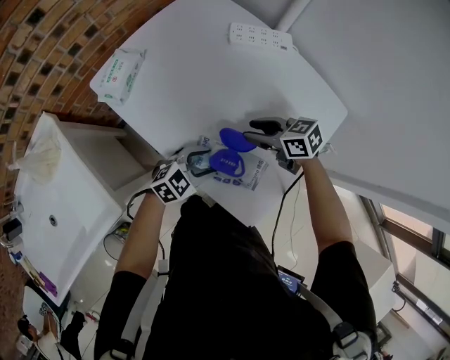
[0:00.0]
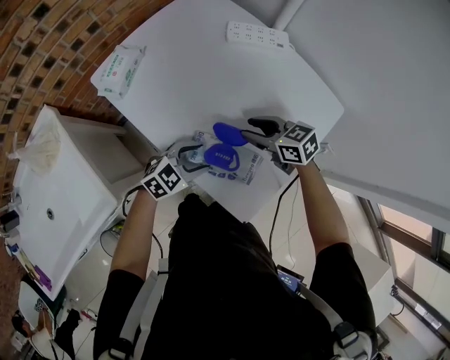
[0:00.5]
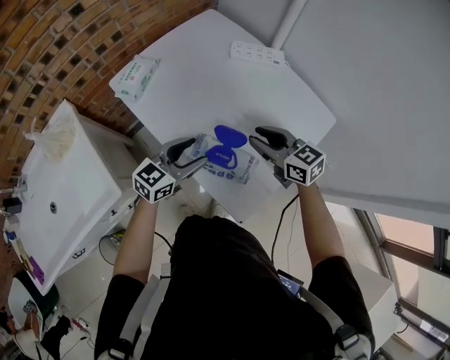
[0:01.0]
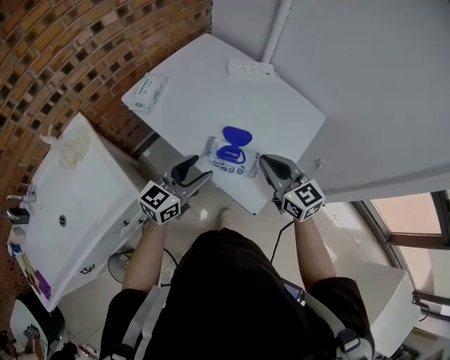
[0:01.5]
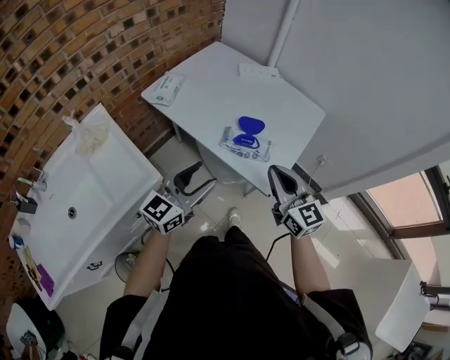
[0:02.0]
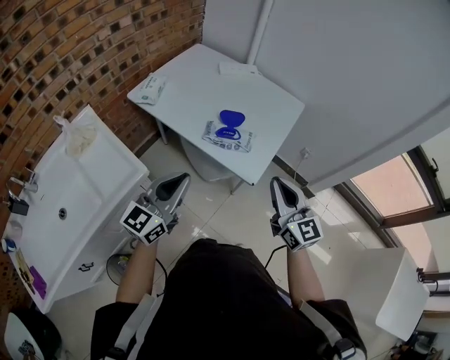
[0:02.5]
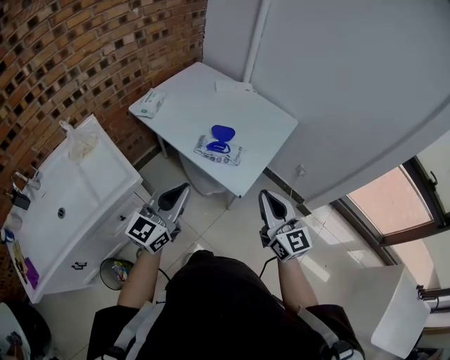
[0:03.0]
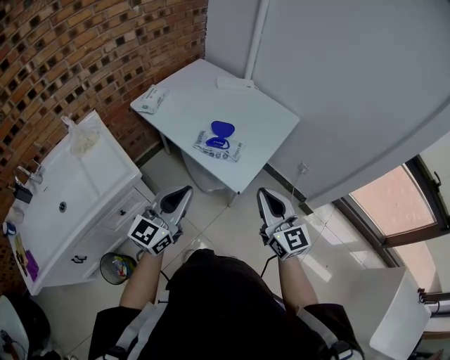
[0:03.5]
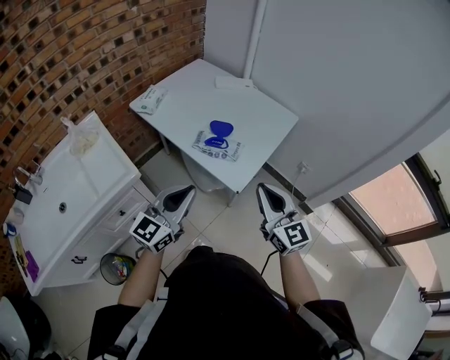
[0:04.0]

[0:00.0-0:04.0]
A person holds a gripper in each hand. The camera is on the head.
0:00.0 to 0:02.0: The left gripper travels upward by some 25 cm, and tips its fingers upward by some 40 degrees. Meanwhile the right gripper changes place by about 35 cm, swivels some 60 degrees, and closes.
0:02.0 to 0:04.0: Both grippers move to the right and backward, roughly 15 cm. The left gripper closes its fingers.

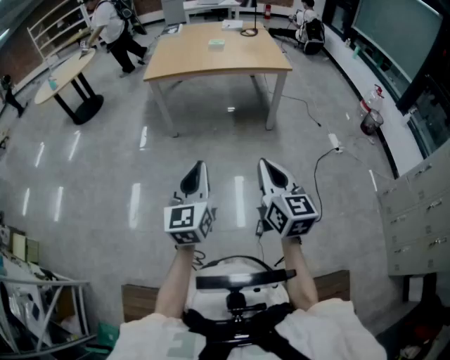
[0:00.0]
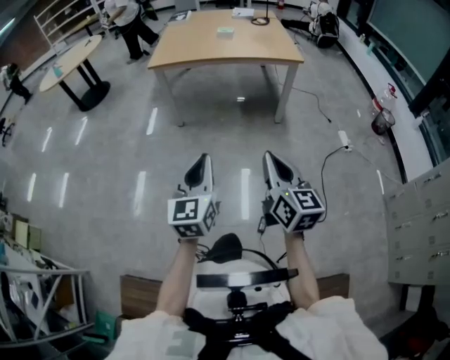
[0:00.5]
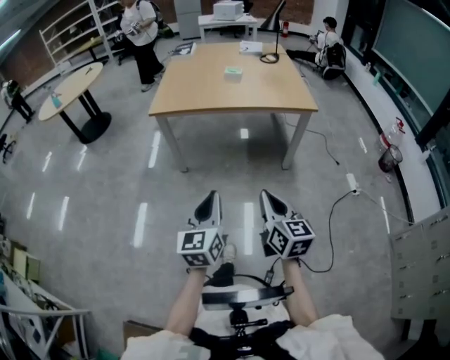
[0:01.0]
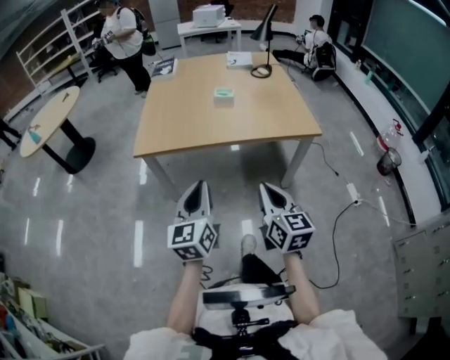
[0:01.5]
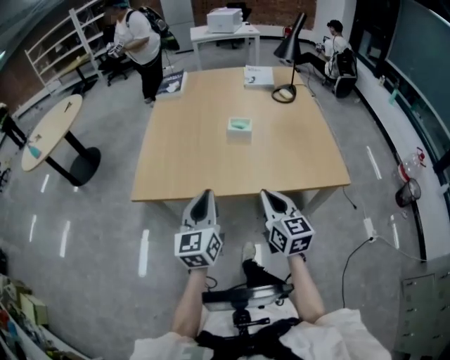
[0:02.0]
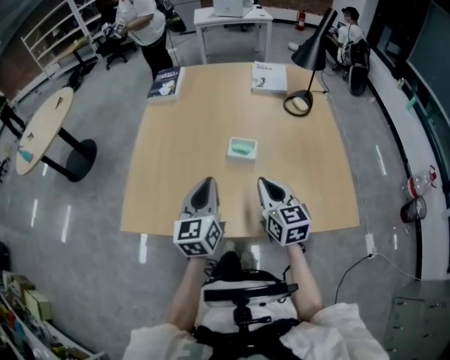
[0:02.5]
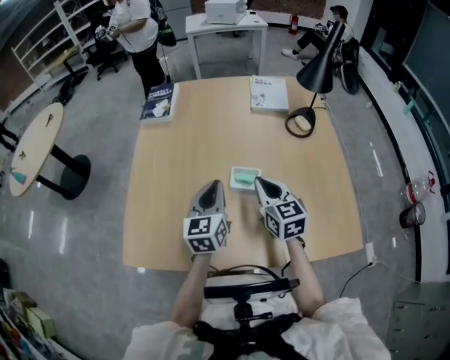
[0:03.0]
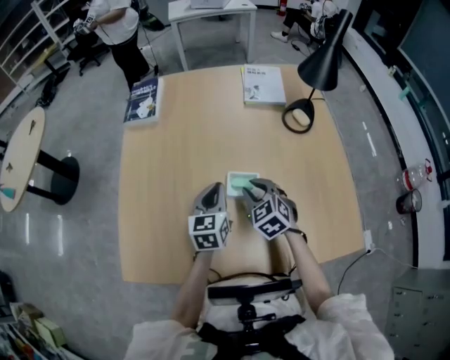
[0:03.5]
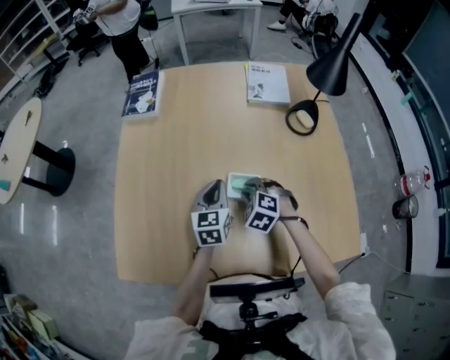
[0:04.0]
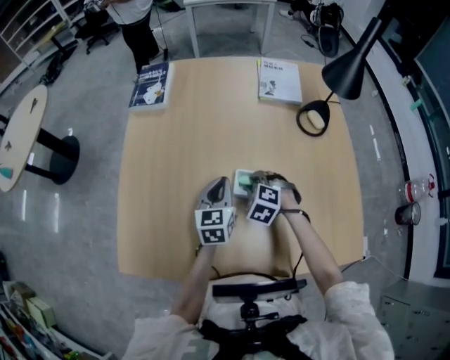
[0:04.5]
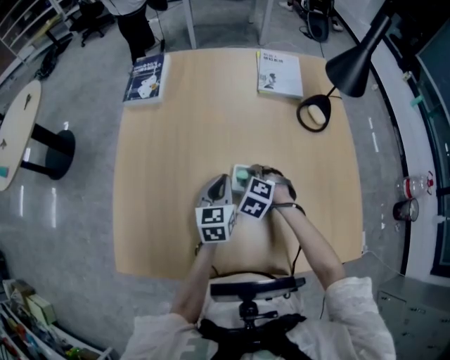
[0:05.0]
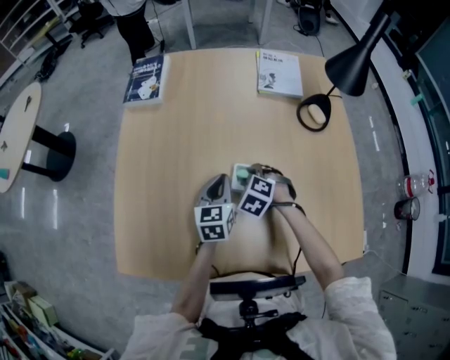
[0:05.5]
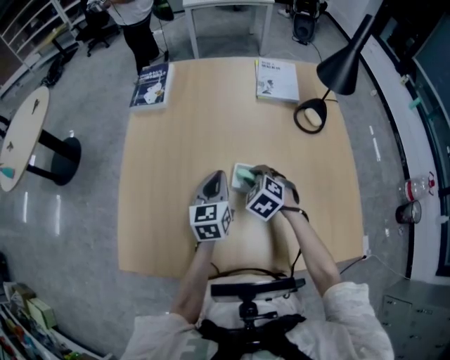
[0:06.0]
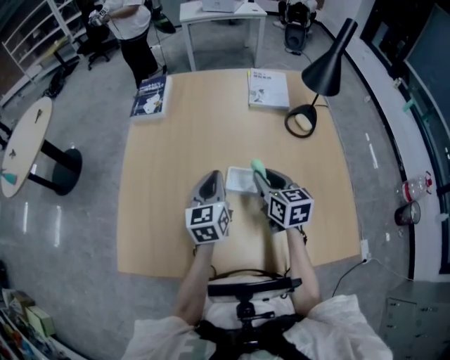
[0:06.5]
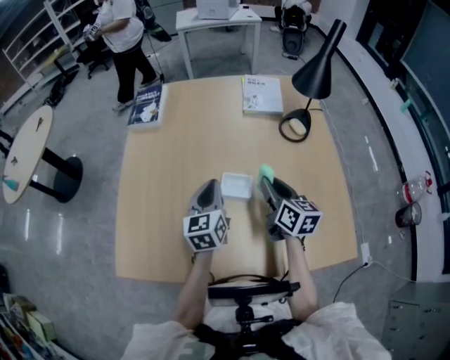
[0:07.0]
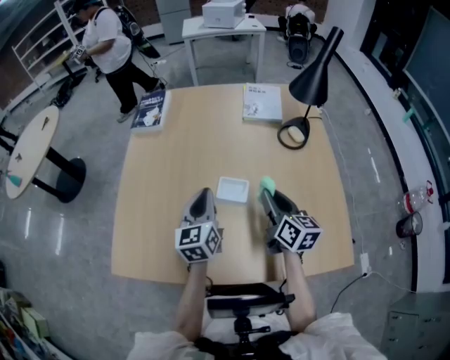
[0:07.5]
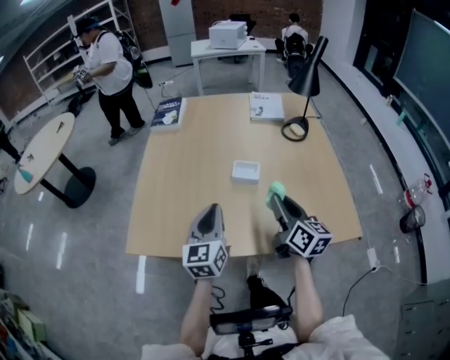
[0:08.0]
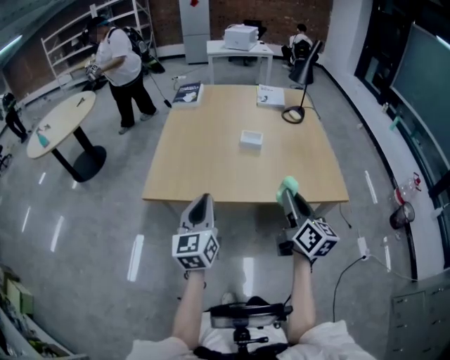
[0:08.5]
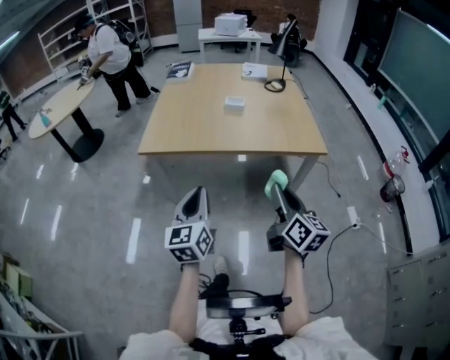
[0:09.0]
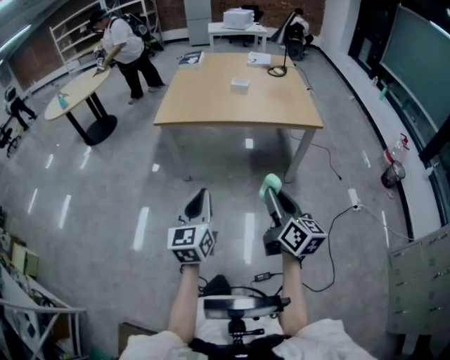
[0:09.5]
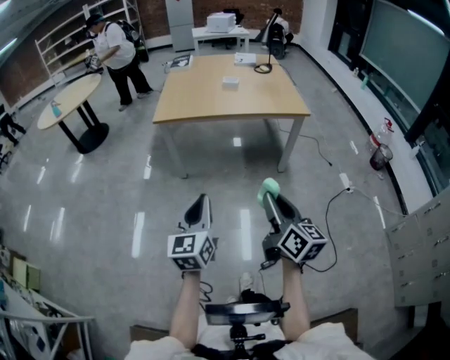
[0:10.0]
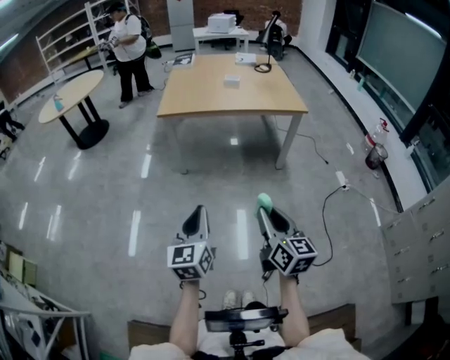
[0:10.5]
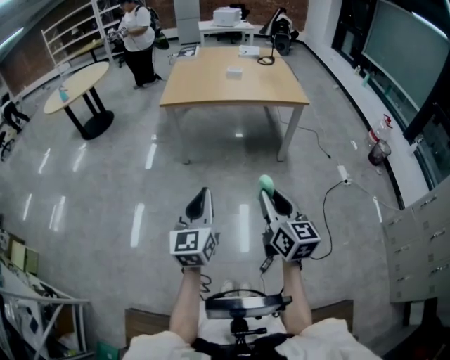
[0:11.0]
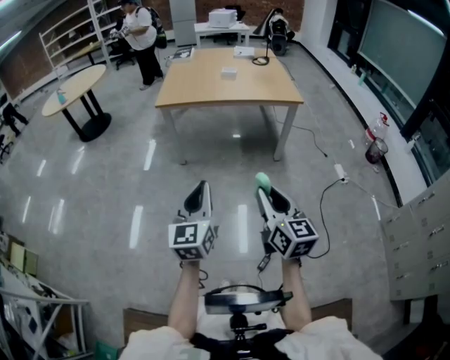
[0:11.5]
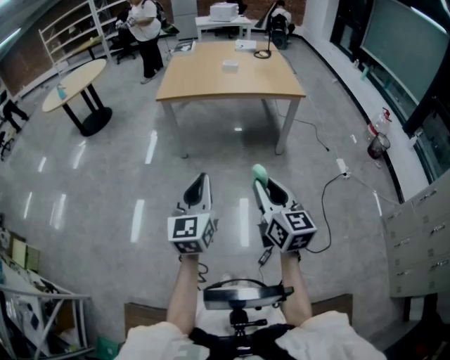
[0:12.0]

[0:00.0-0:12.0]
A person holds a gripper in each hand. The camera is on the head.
0:00.0 to 0:02.0: The pair of grippers is taken forward, about 80 cm.
0:02.0 to 0:04.0: The two grippers travel together, forward, some 40 cm. The left gripper turns by roughly 20 degrees; the right gripper tilts its fingers approximately 50 degrees downward, and opens.
0:04.0 to 0:06.0: The grippers stay close to where they were, moving slightly.
0:06.0 to 0:08.0: The right gripper shifts about 25 cm backward and upward, and tips its fingers upward by about 50 degrees; the left gripper goes some 25 cm backward.
0:08.0 to 0:10.0: Both grippers are carried backward, approximately 80 cm.
0:10.0 to 0:12.0: Both grippers travel together backward, about 10 cm.

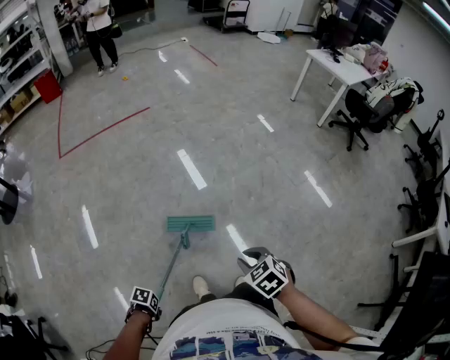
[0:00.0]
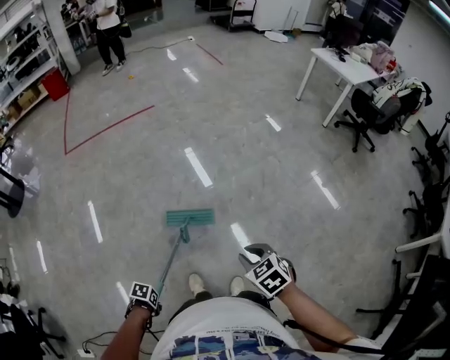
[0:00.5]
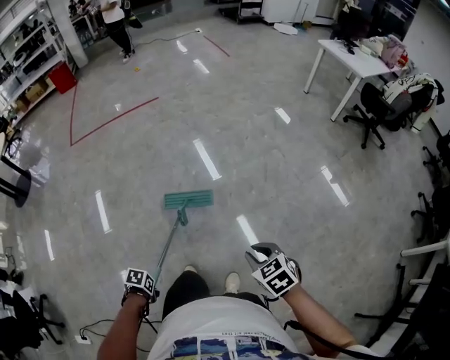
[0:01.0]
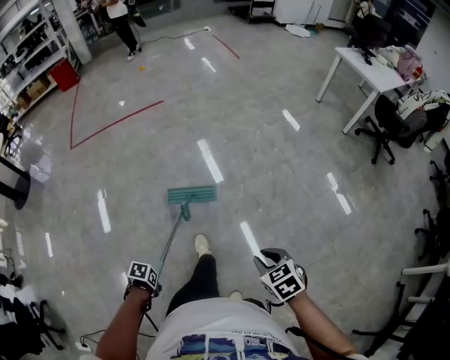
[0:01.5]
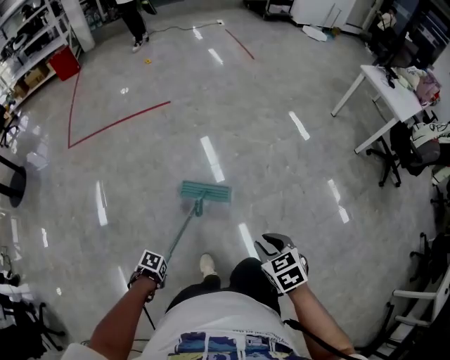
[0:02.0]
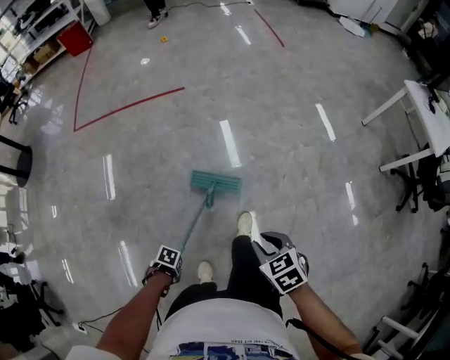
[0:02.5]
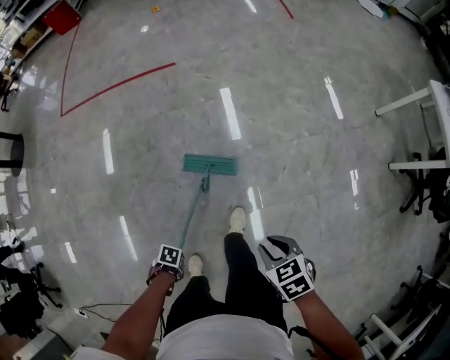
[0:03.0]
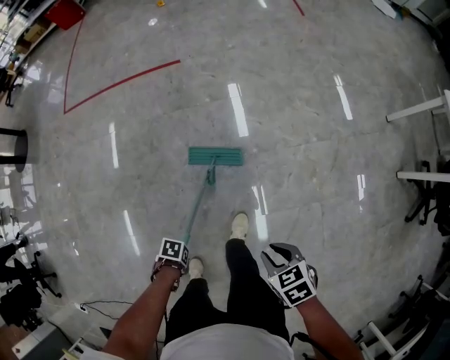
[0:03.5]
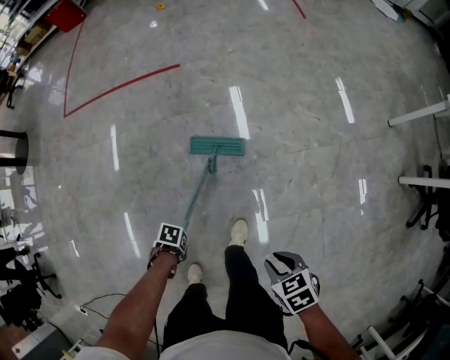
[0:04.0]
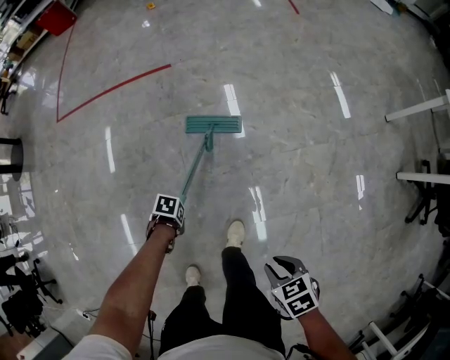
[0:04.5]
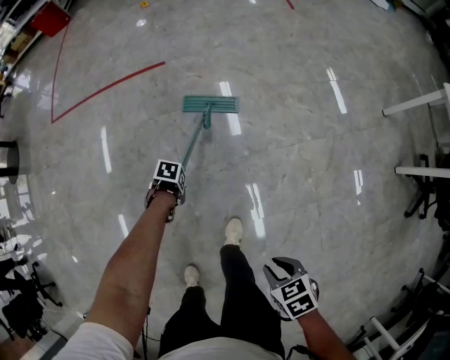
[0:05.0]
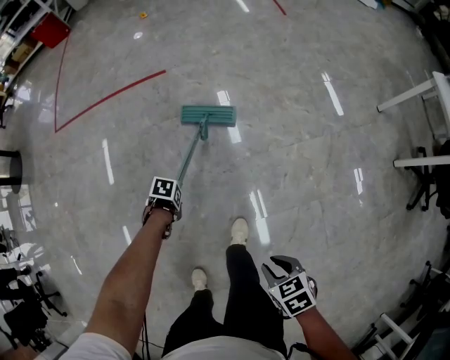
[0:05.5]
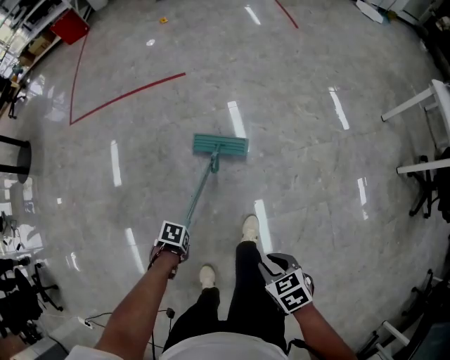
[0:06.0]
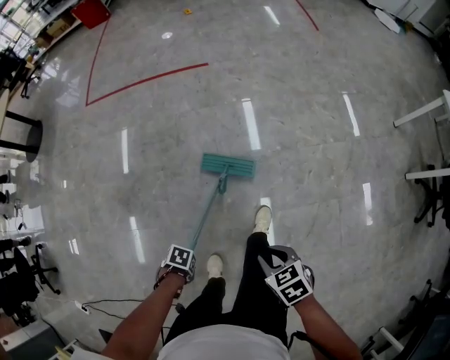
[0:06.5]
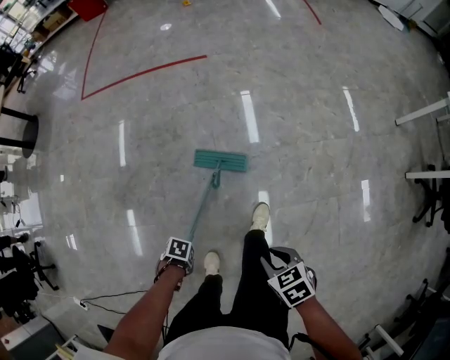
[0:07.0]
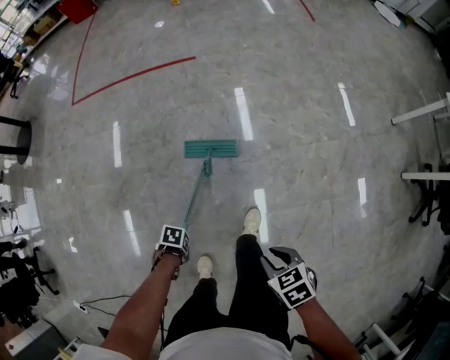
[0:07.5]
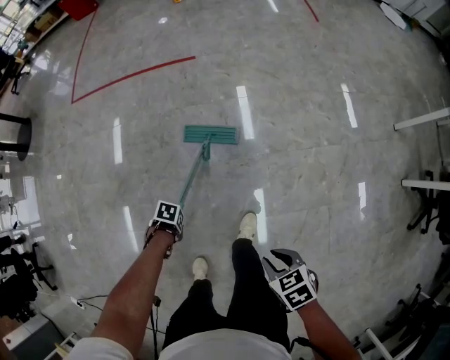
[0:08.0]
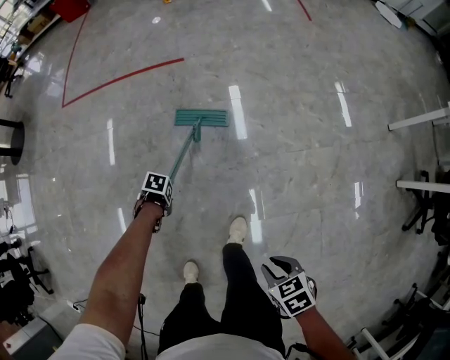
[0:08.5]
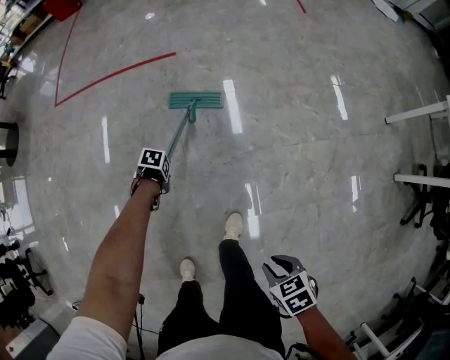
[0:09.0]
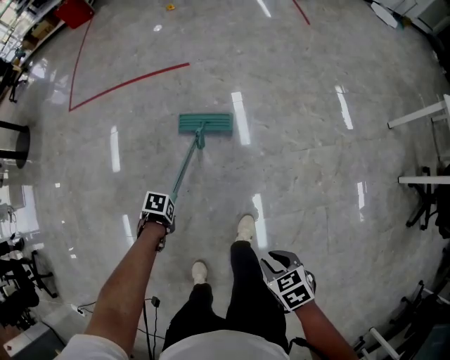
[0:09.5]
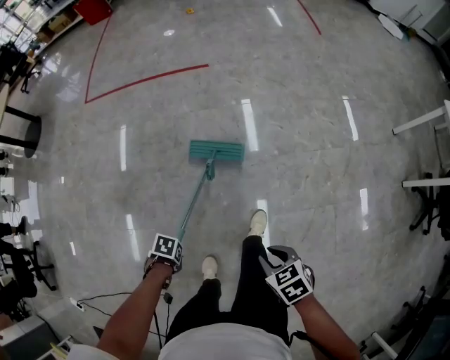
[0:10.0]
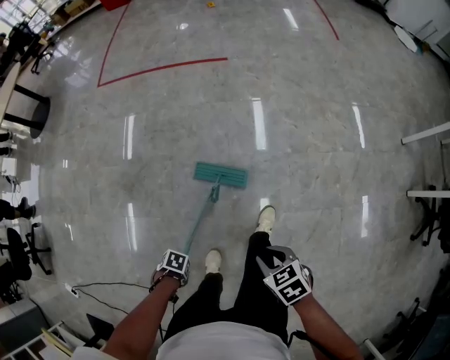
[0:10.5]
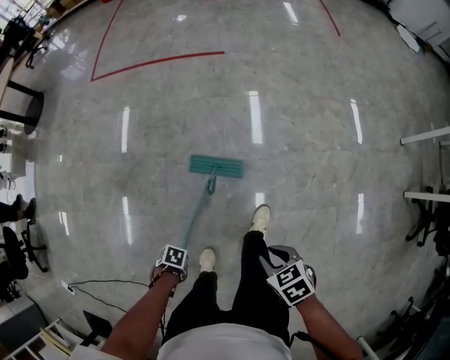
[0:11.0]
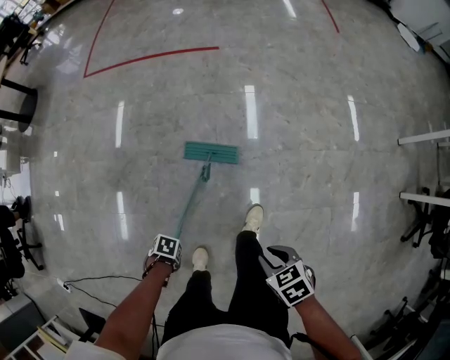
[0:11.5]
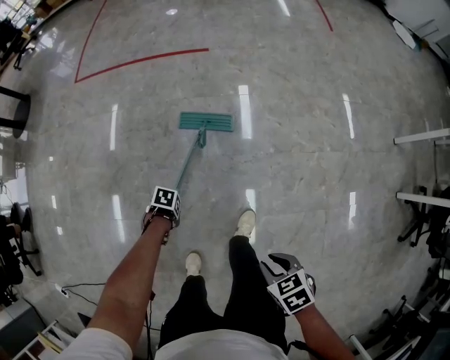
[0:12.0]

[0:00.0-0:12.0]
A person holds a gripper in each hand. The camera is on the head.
0:00.0 to 0:02.0: The right gripper ends up approximately 30 cm from where it was.
0:02.0 to 0:04.0: The right gripper changes place by approximately 25 cm, and rotates approximately 30 degrees.
0:04.0 to 0:06.0: The right gripper changes place by approximately 10 cm.
0:08.0 to 0:10.0: The right gripper moves some 5 cm.
